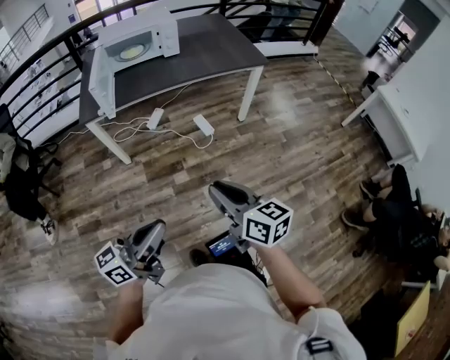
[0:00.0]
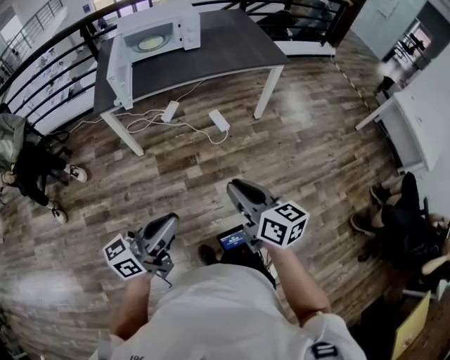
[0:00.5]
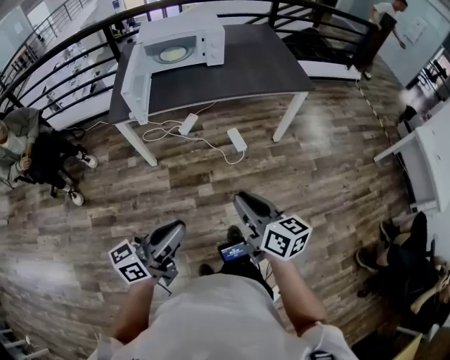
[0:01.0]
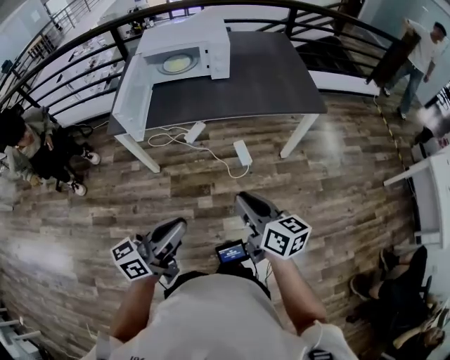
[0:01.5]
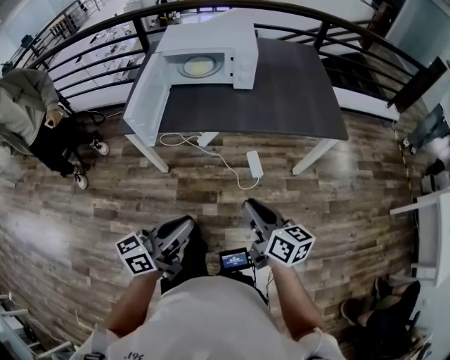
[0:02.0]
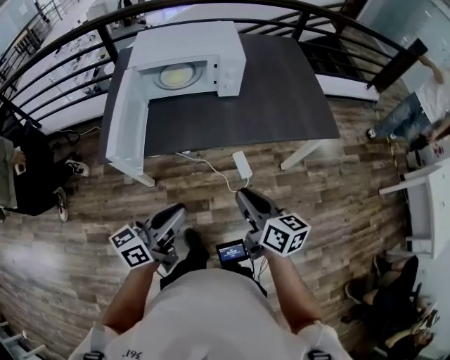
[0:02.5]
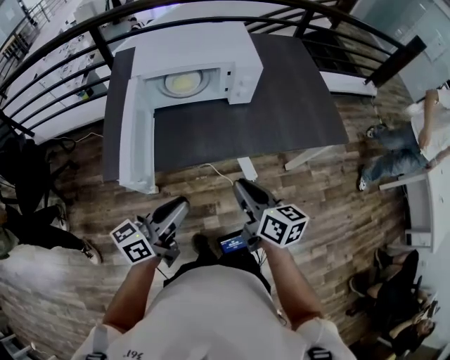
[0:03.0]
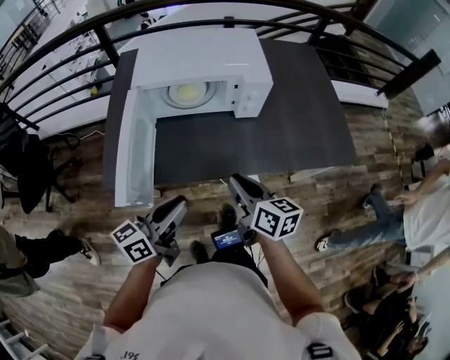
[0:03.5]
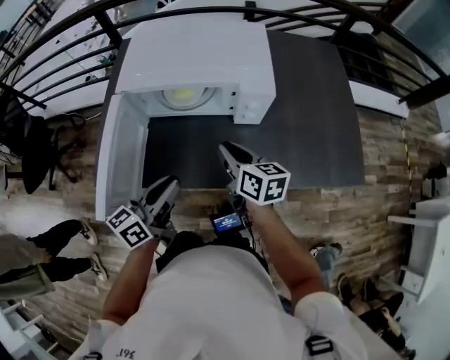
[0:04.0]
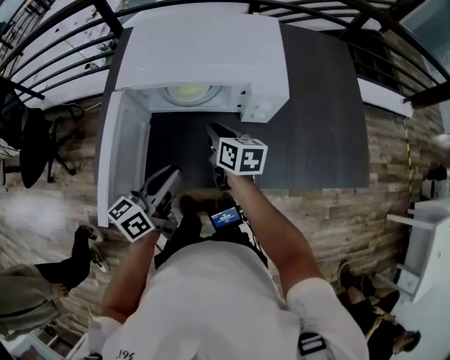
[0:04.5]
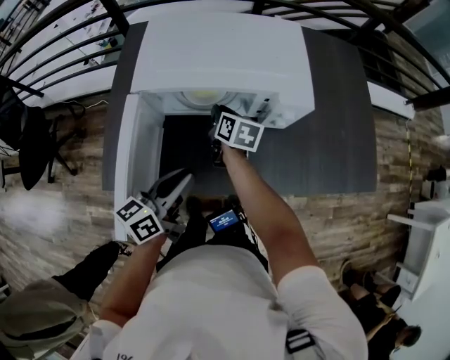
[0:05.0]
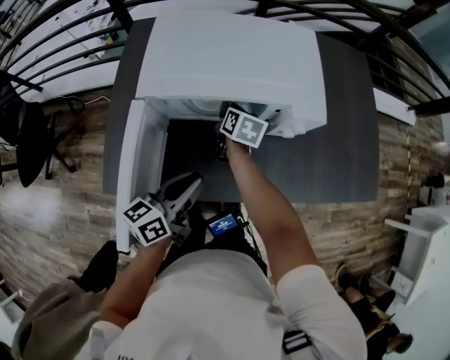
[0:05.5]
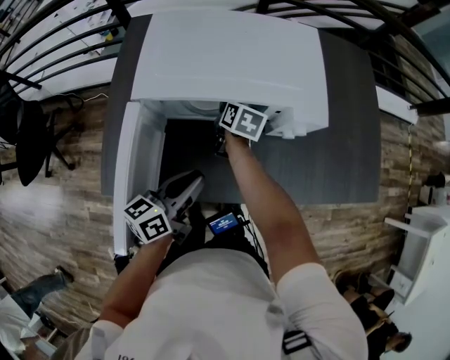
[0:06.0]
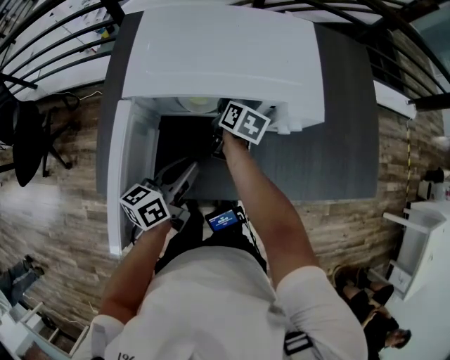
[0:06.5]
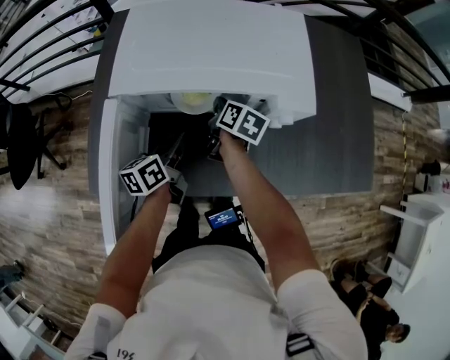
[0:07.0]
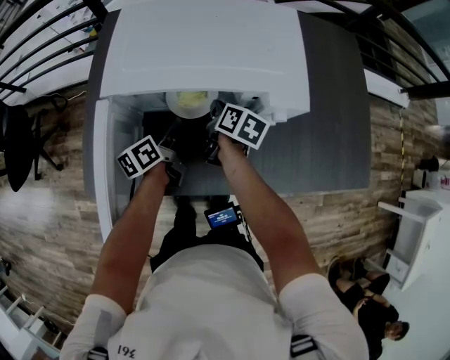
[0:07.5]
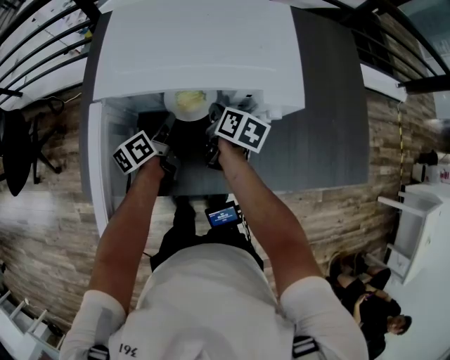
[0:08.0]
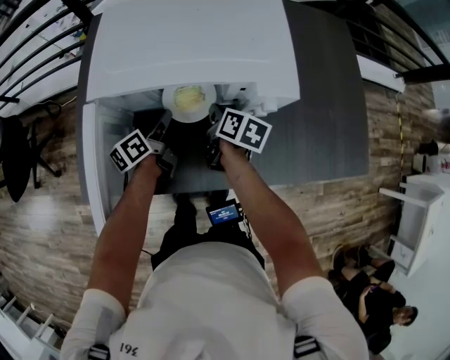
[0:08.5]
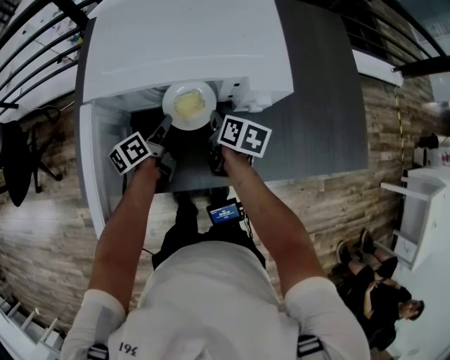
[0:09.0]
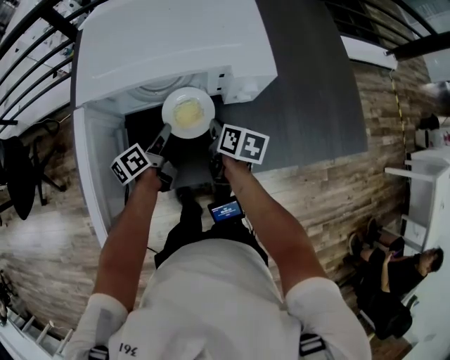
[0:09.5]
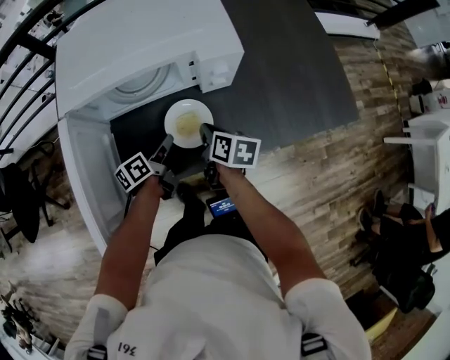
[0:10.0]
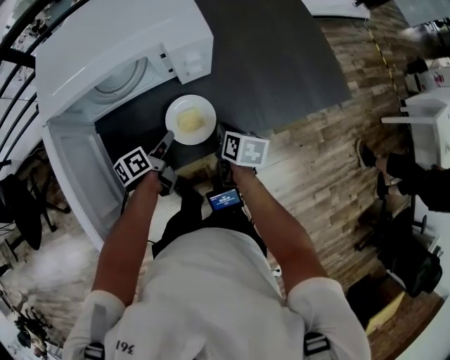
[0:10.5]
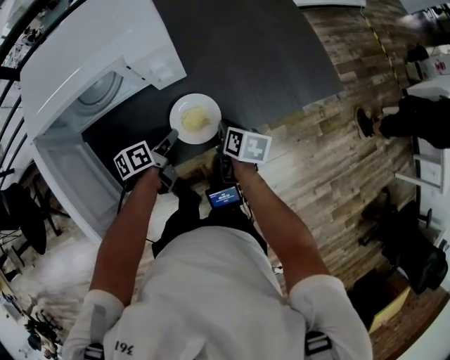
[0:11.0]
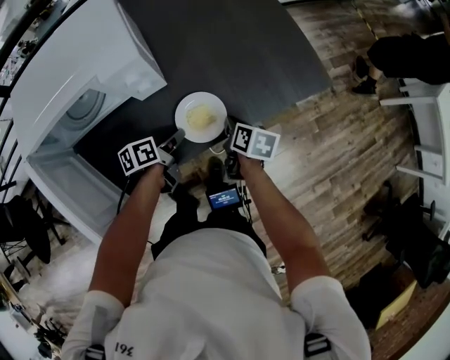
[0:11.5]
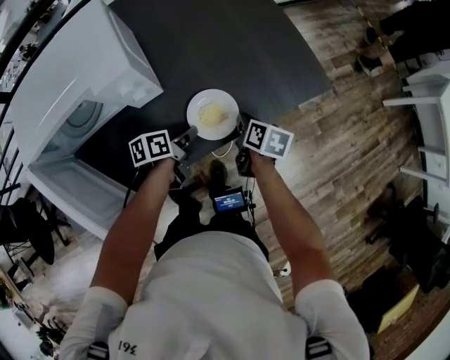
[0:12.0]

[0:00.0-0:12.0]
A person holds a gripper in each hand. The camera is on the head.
0:00.0 to 0:02.0: The grippers both shift forward by approximately 35 cm. The left gripper rotates about 20 degrees.
0:02.0 to 0:04.0: The two grippers travel together, forward, roughly 50 cm.
0:04.0 to 0:06.0: The right gripper moves forward, downward and to the left, about 25 cm, and swivels about 30 degrees. The left gripper heads forward and downward, covering roughly 10 cm.
0:06.0 to 0:08.0: The left gripper goes approximately 20 cm forward and downward, and rotates about 30 degrees, while the right gripper moves to the right and backward, approximately 10 cm.
0:08.0 to 0:10.0: The grippers both shift backward and to the right by about 15 cm.
0:10.0 to 0:12.0: The left gripper shifts by about 25 cm, and swivels about 30 degrees; the right gripper shifts by some 30 cm.

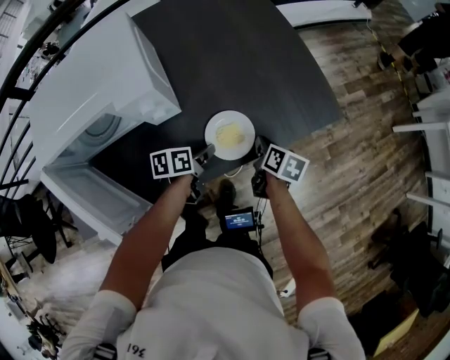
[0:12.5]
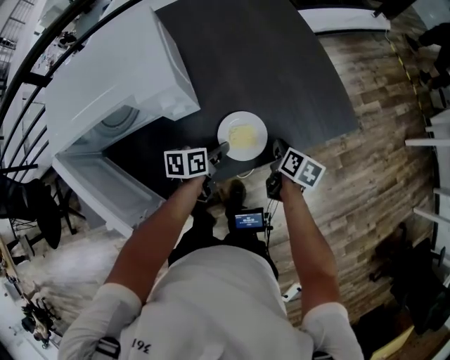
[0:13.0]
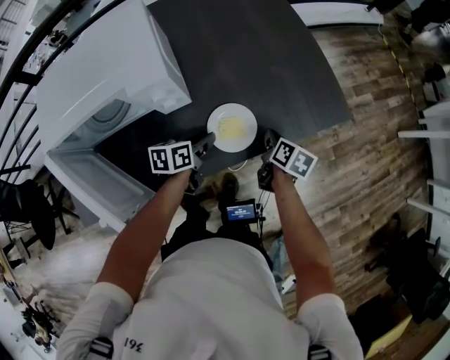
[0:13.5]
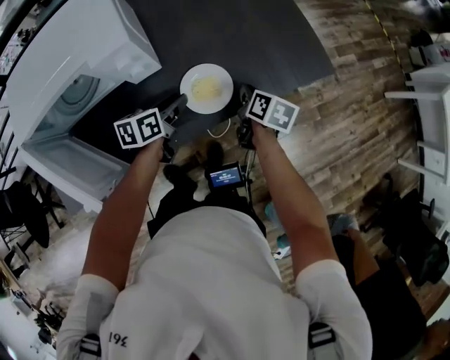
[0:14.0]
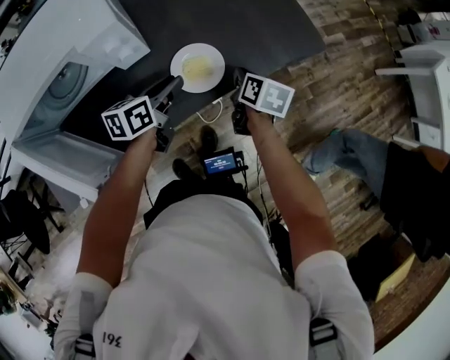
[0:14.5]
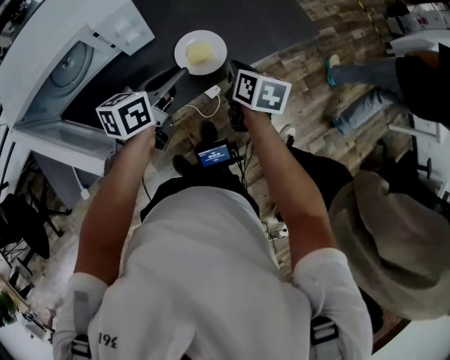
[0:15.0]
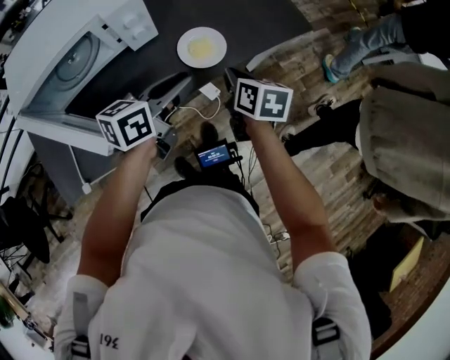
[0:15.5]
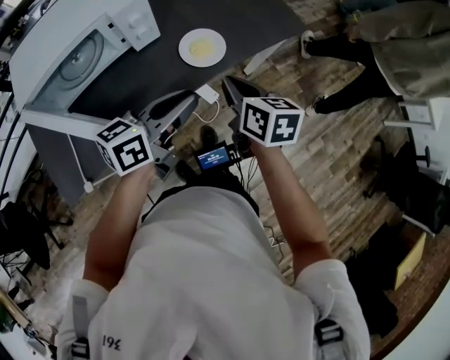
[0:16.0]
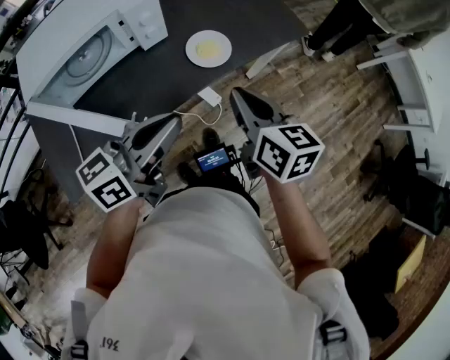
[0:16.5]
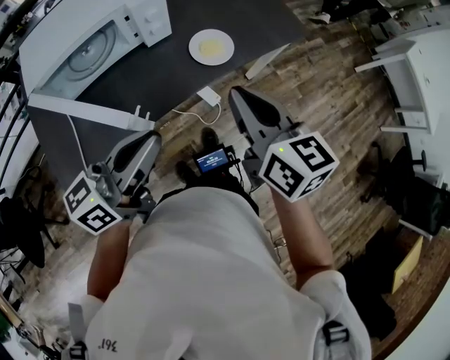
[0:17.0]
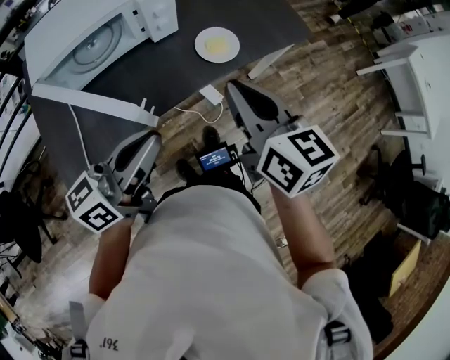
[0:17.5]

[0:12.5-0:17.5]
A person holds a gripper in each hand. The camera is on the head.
0:12.5 to 0:15.0: The right gripper is displaced upward by roughly 10 cm. The left gripper moves upward, approximately 15 cm, and turns by about 30 degrees.
0:15.0 to 0:17.5: The two grippers go approximately 35 cm backward and upward. The right gripper turns by approximately 30 degrees. The left gripper turns by some 20 degrees, and closes its fingers.

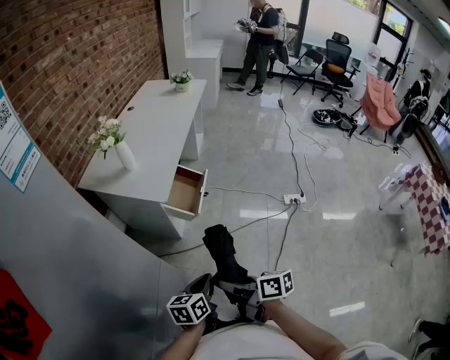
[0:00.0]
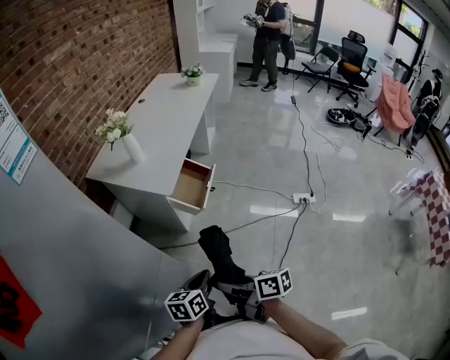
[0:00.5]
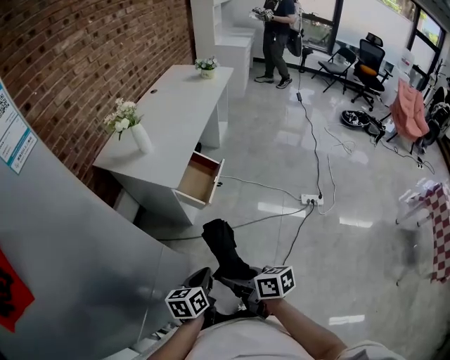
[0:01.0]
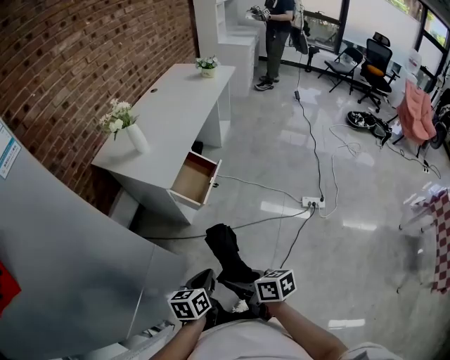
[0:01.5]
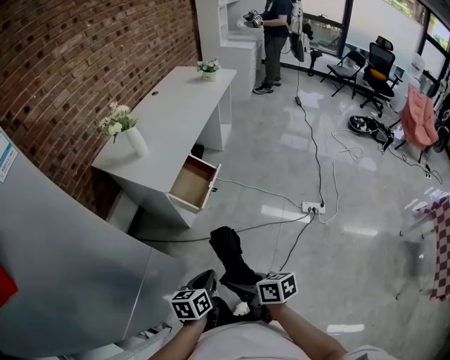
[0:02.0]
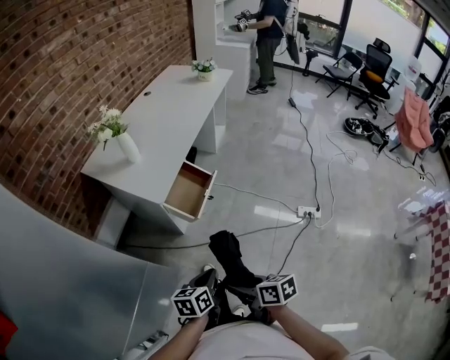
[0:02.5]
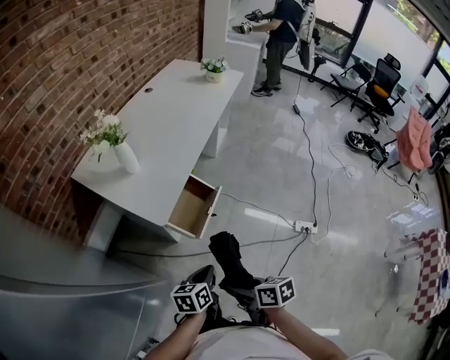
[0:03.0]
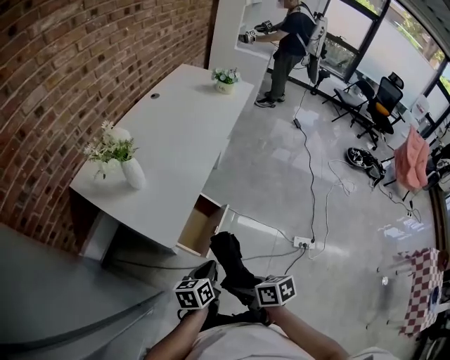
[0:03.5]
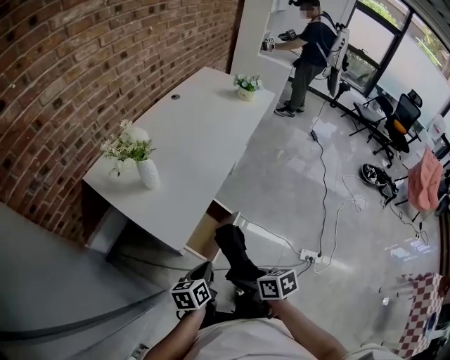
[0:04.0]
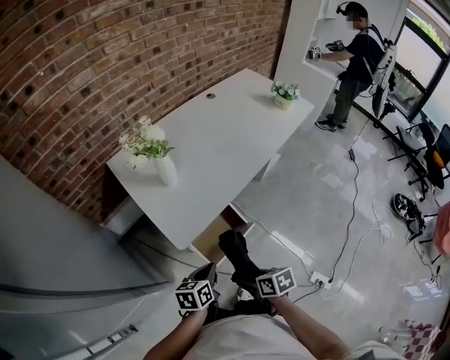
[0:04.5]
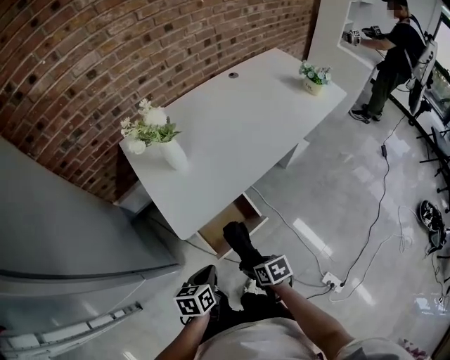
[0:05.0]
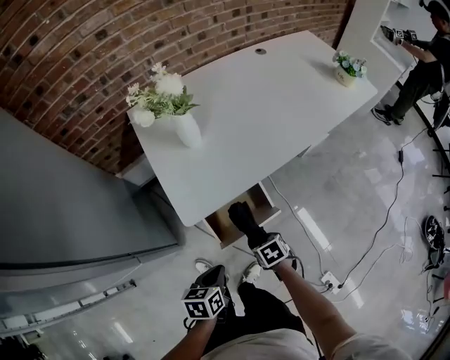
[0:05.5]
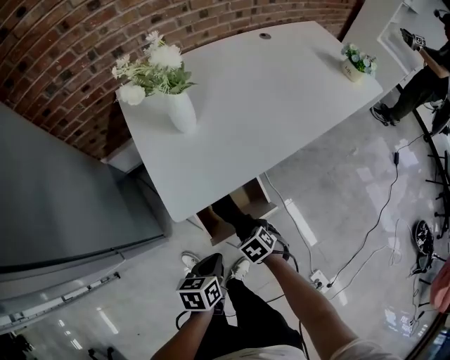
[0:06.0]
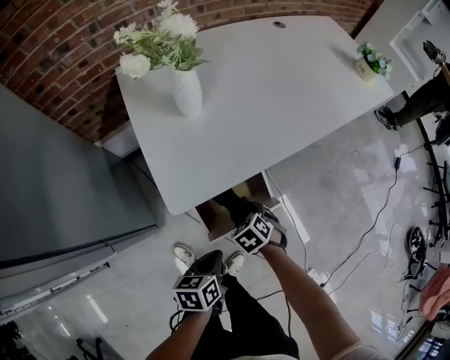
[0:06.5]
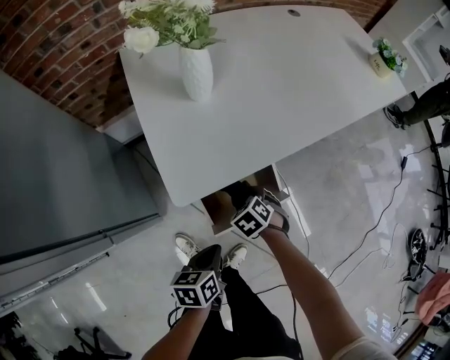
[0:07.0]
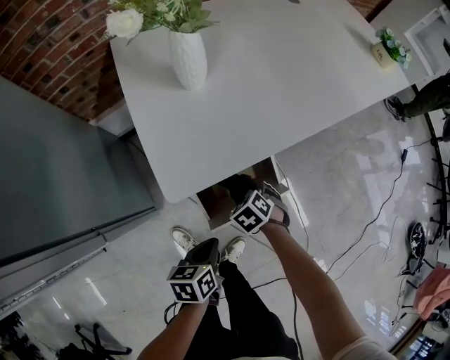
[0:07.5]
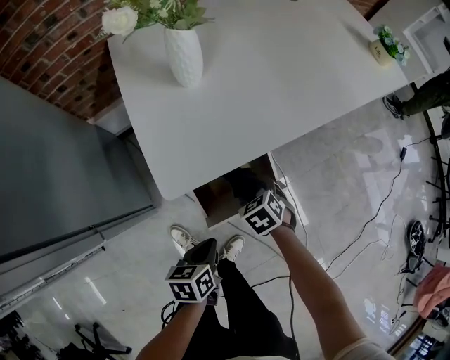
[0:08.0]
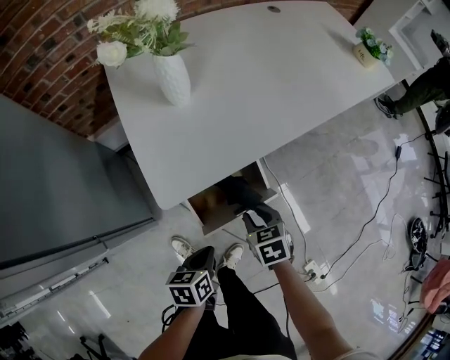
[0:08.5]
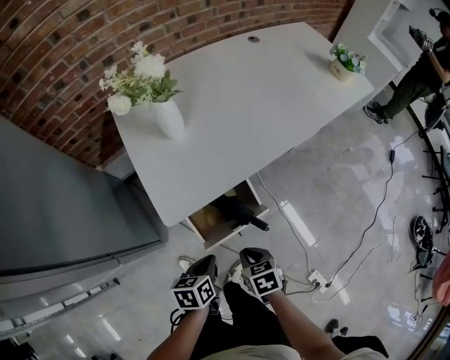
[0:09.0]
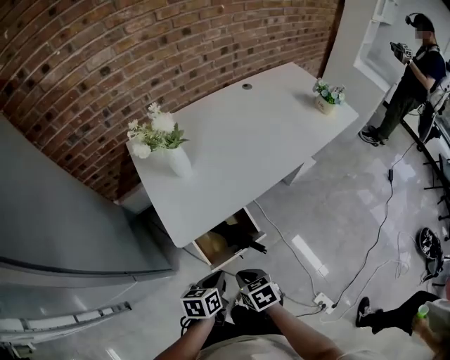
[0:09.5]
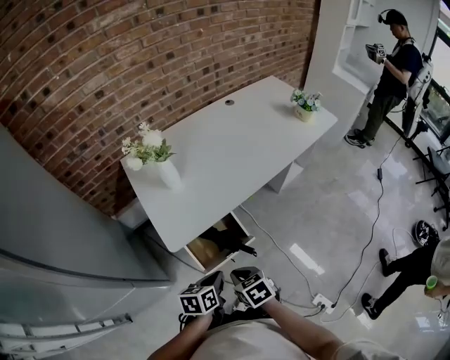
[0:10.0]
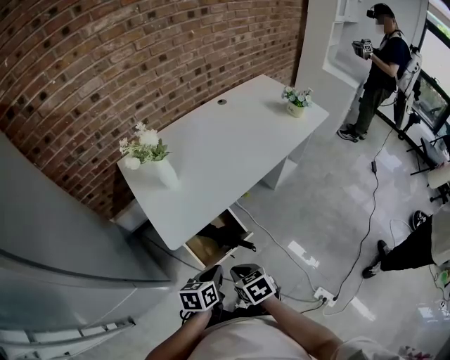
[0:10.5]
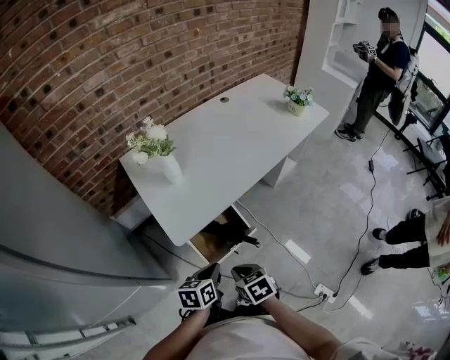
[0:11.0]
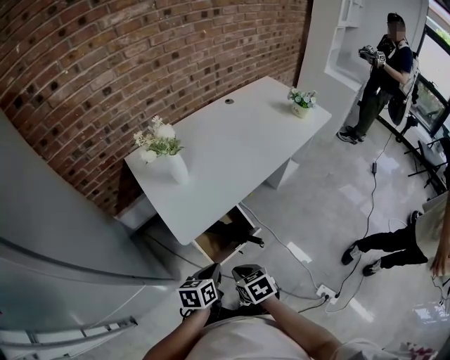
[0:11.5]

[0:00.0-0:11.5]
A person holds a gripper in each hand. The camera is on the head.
0:00.0 to 0:02.0: The grippers both shift to the right by roughly 10 cm.
0:02.0 to 0:04.0: The two grippers go some 35 cm forward.
0:04.0 to 0:06.0: The right gripper shifts approximately 25 cm downward, and rolls counterclockwise, seen from behind, by about 60 degrees, while the left gripper heads downward, covering some 10 cm, and turns by about 30 degrees.
0:06.0 to 0:07.5: The left gripper is displaced downward by approximately 5 cm, while the right gripper ends up some 10 cm from where it was.
0:07.5 to 0:09.5: The left gripper heads upward, covering about 15 cm; the right gripper travels upward and backward by roughly 25 cm, swivels approximately 40 degrees, and closes.
0:09.5 to 0:11.5: Both grippers move upward, some 5 cm.
